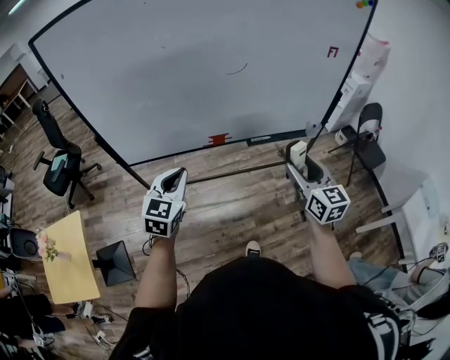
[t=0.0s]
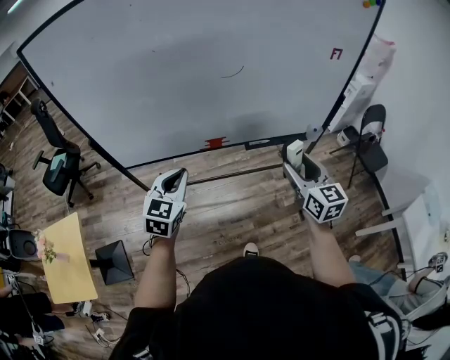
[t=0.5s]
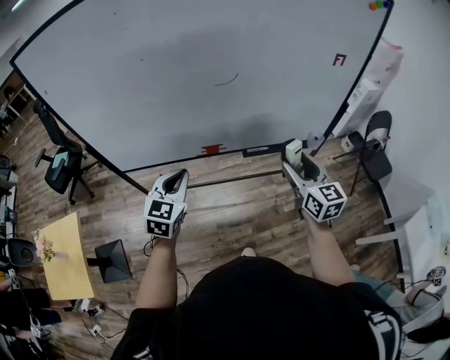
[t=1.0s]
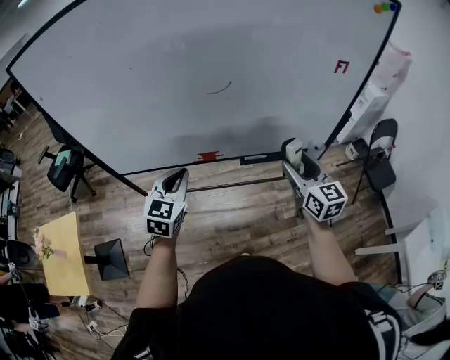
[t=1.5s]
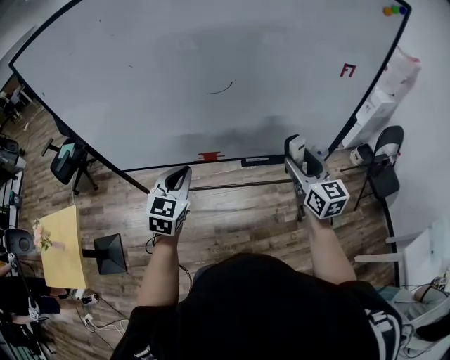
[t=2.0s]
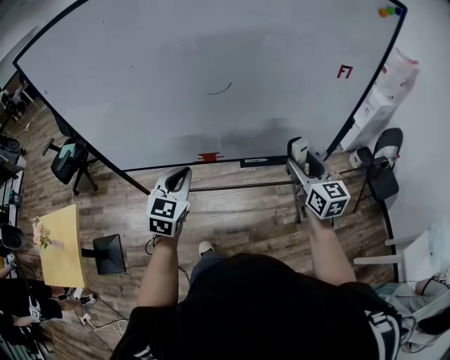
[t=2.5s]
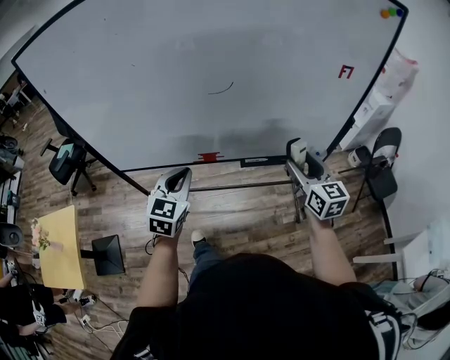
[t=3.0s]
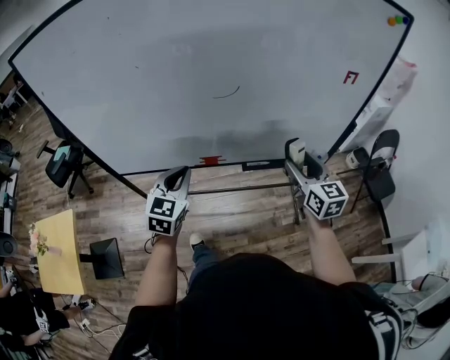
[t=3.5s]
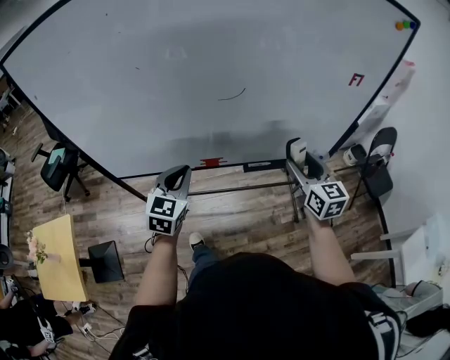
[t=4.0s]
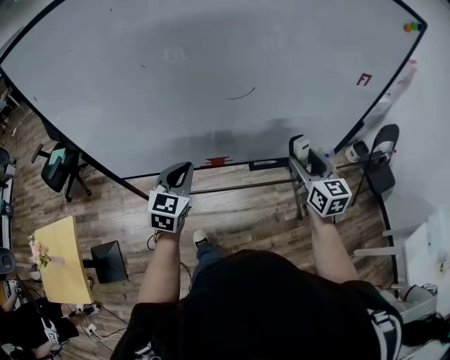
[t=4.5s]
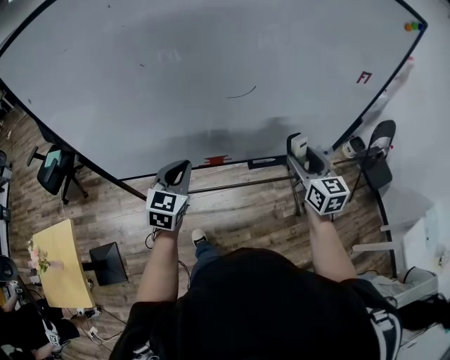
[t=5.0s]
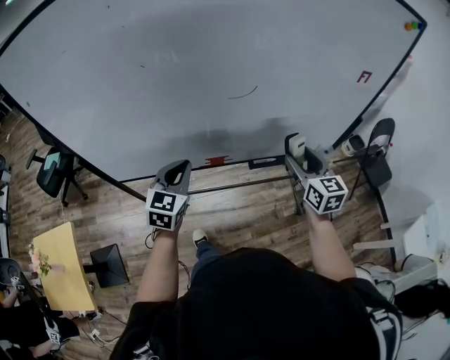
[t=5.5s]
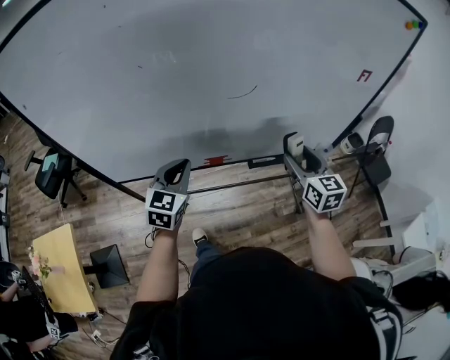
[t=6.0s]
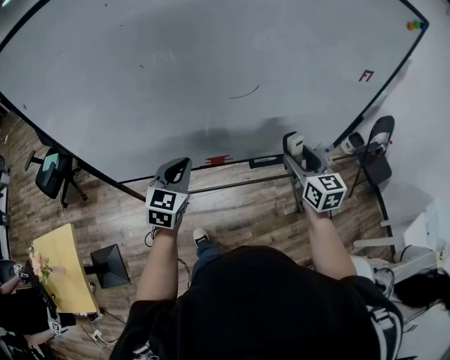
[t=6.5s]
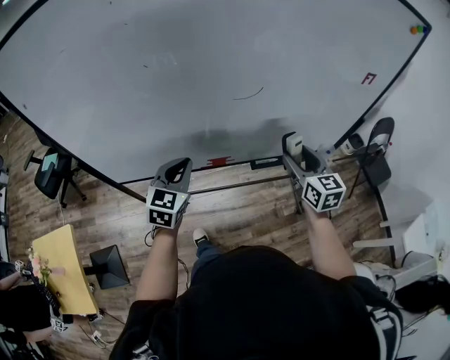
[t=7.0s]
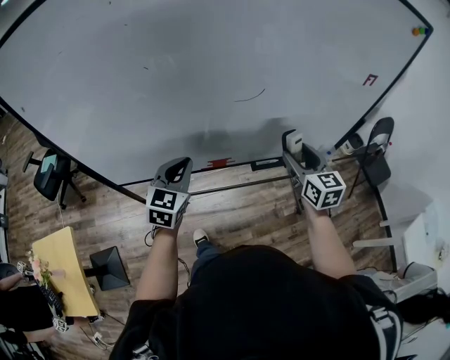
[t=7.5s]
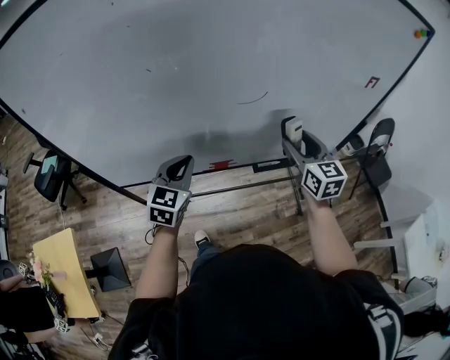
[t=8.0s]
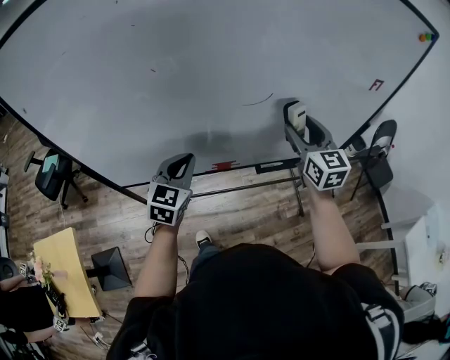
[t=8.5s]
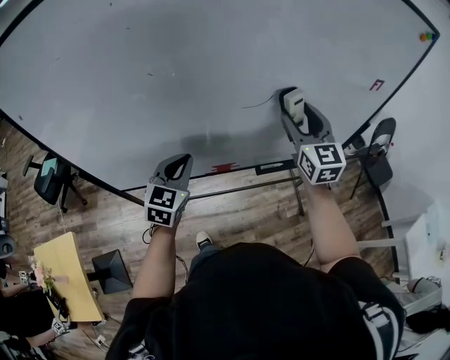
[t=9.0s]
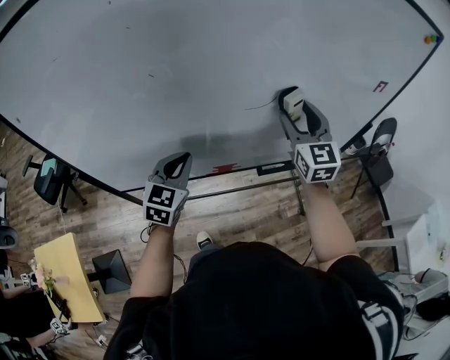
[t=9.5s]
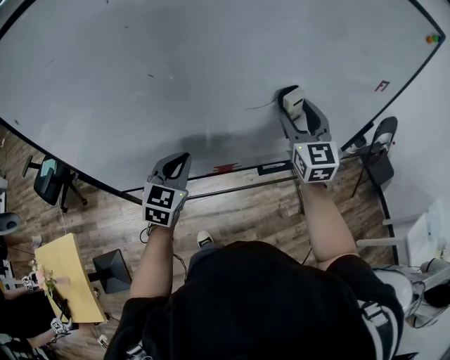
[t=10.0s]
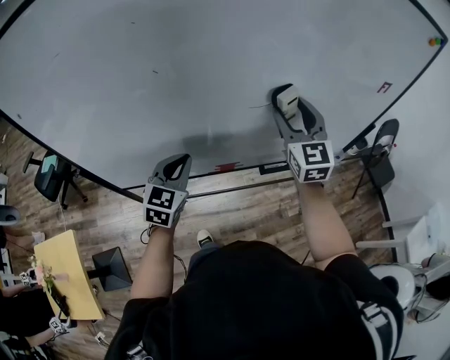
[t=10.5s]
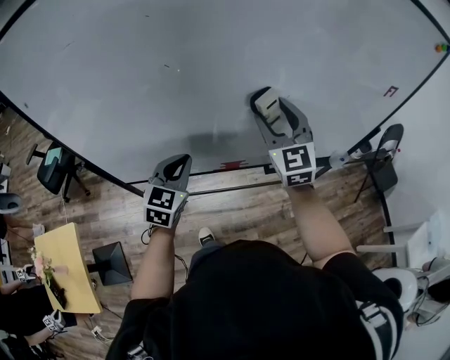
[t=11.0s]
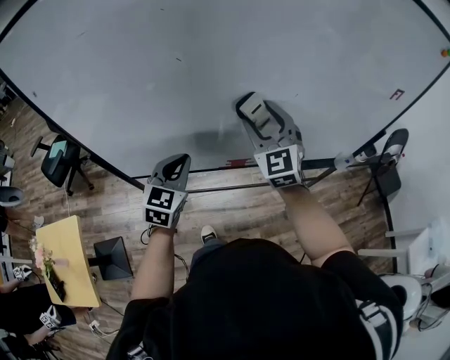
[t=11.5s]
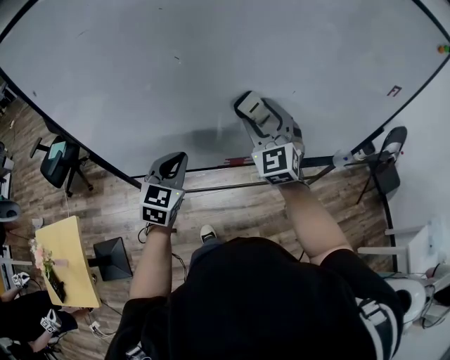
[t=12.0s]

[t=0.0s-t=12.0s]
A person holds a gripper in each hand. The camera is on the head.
t=0.0s to t=2.0s: The grippers both shift forward and to the right by roughly 20 cm.
t=2.0s to t=4.0s: The left gripper changes place by some 5 cm.
t=4.0s to t=6.0s: The left gripper ends up about 5 cm from where it was. Meanwhile the right gripper changes place by roughly 5 cm.
t=6.0s to t=8.0s: The right gripper goes about 5 cm forward.
t=8.0s to t=10.0s: The right gripper is displaced upward, forward and to the left by approximately 10 cm, and changes its angle by some 20 degrees.
t=10.0s to t=12.0s: The right gripper moves to the left, roughly 15 cm, and turns by roughly 20 degrees. The left gripper moves some 5 cm.

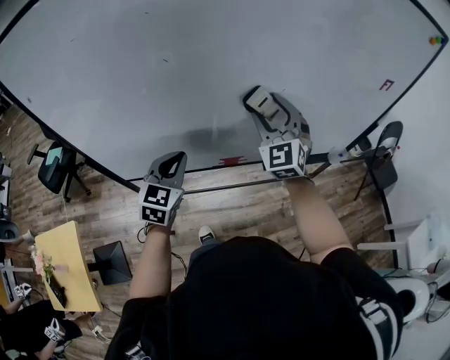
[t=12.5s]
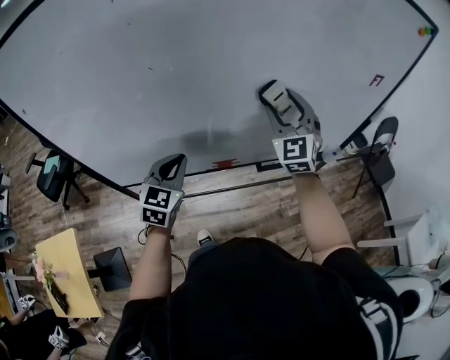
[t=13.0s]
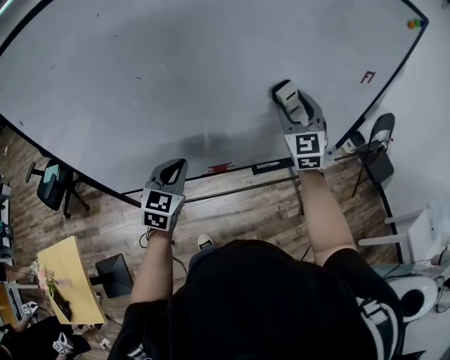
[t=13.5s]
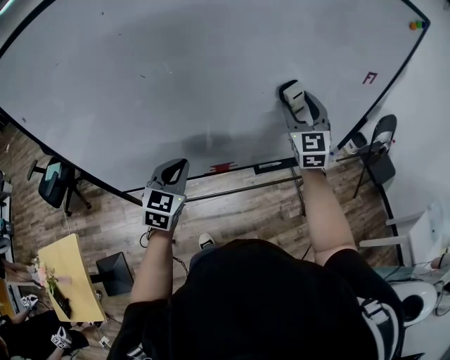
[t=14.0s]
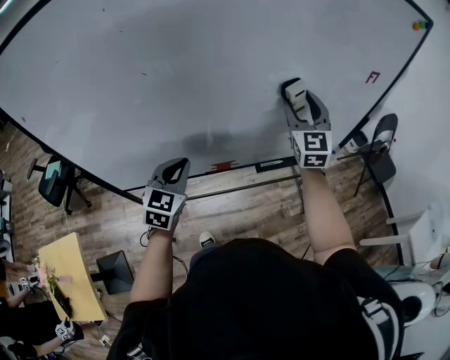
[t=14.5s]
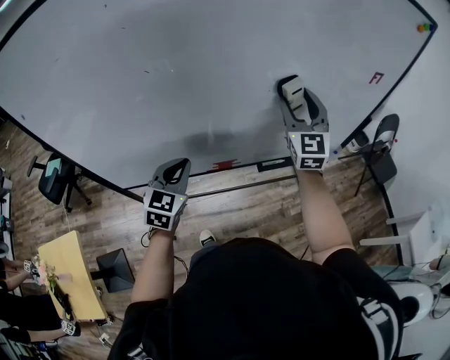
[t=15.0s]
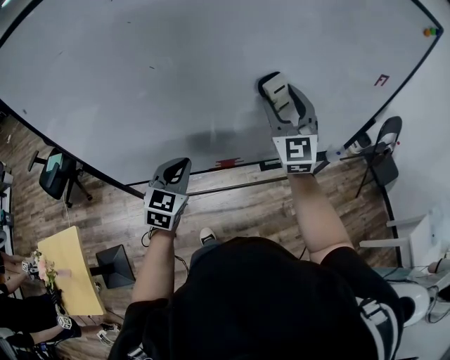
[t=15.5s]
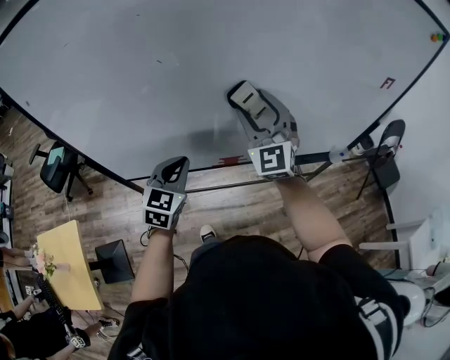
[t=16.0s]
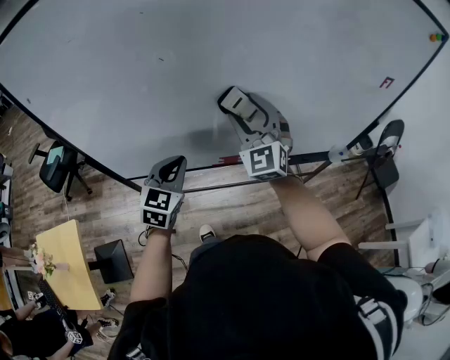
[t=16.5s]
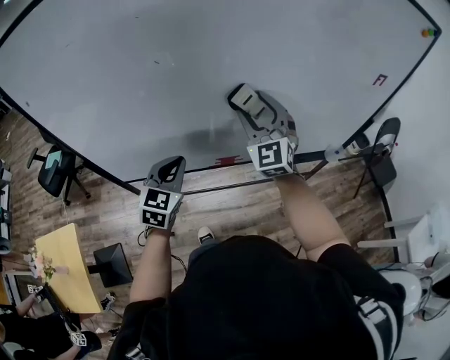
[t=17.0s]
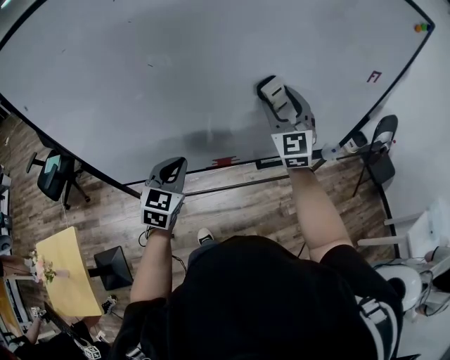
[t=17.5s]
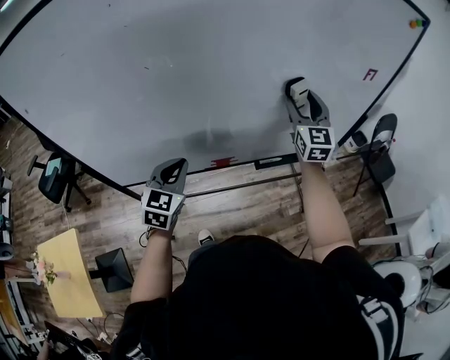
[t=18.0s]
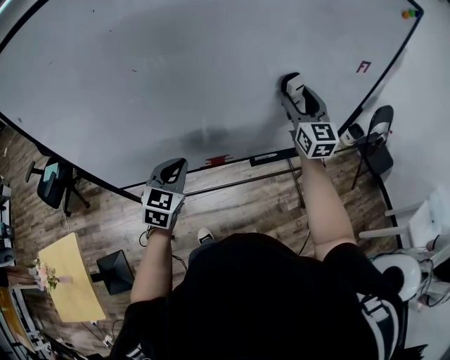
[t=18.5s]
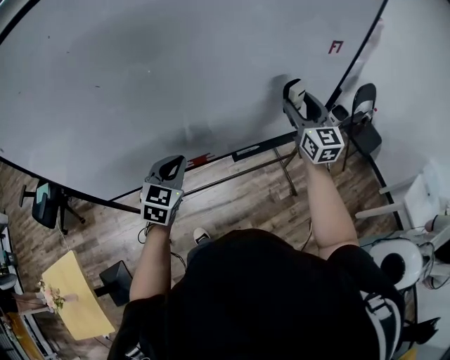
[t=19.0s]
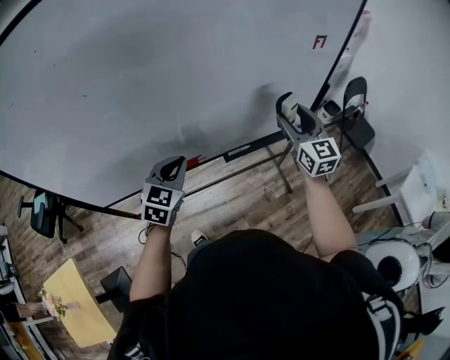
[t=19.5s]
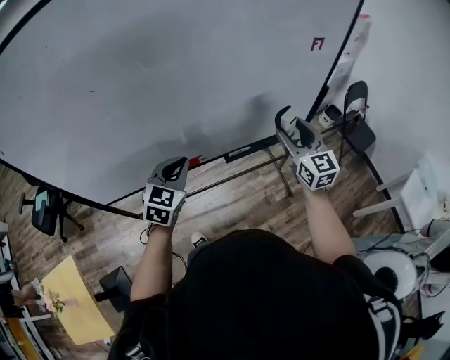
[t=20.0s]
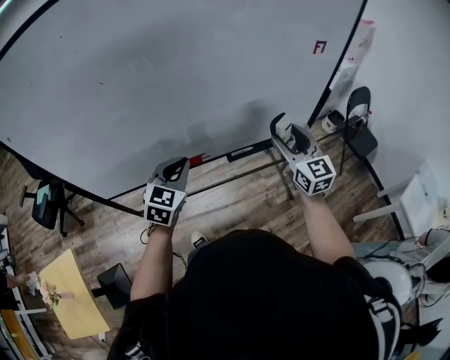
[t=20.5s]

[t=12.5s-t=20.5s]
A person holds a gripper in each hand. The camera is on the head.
t=12.5s to t=14.5s: The right gripper heads to the right, covering some 15 cm, and swivels some 20 degrees.
t=14.5s to t=16.5s: The right gripper heads to the left, covering some 20 cm, and swivels roughly 20 degrees.
t=16.5s to t=18.5s: The right gripper moves to the right, some 20 cm, and swivels some 30 degrees. Meanwhile the left gripper is displaced to the right by approximately 5 cm.
t=18.5s to t=20.5s: The left gripper shifts approximately 10 cm to the right; the right gripper travels backward, to the right and downward by approximately 20 cm.

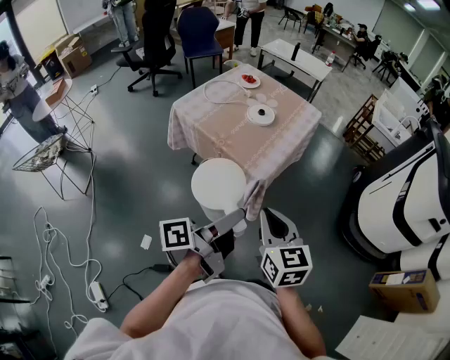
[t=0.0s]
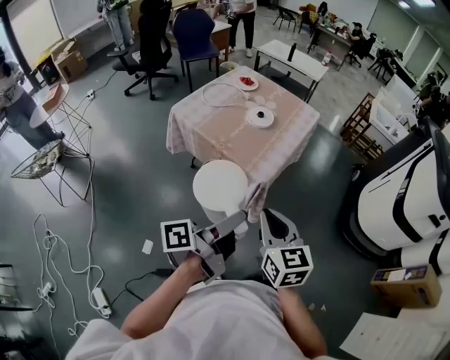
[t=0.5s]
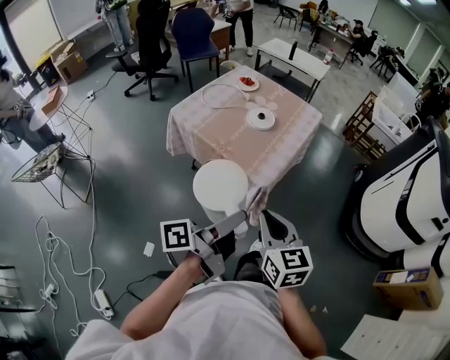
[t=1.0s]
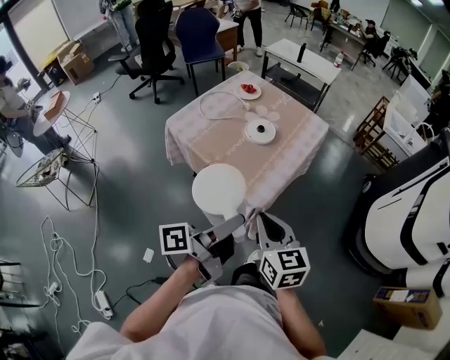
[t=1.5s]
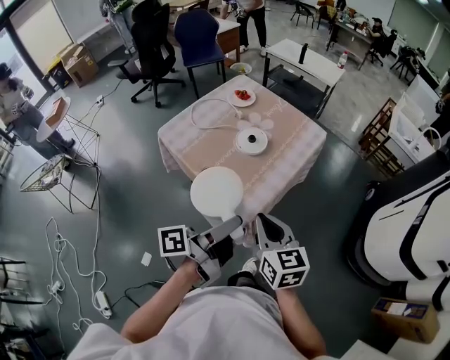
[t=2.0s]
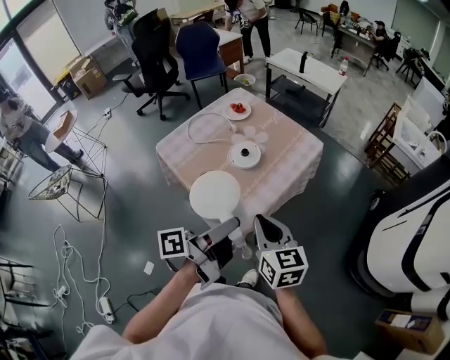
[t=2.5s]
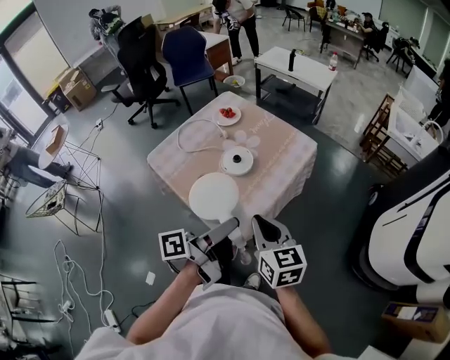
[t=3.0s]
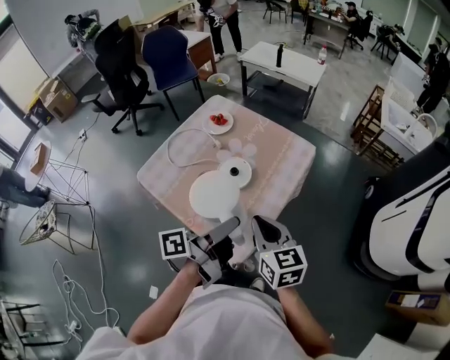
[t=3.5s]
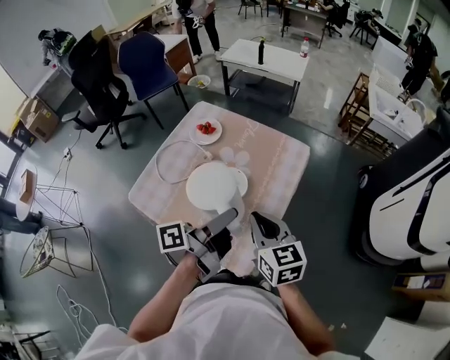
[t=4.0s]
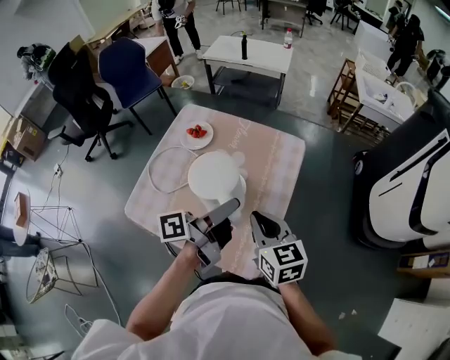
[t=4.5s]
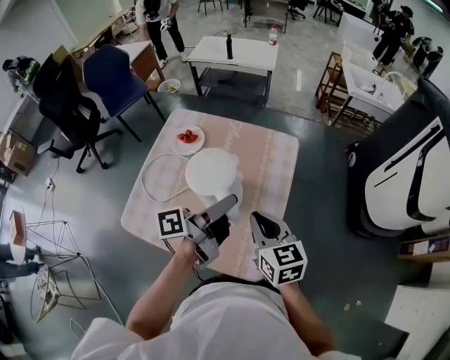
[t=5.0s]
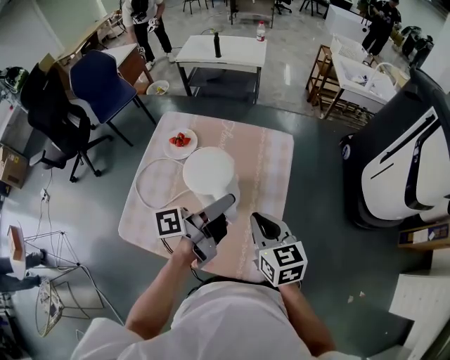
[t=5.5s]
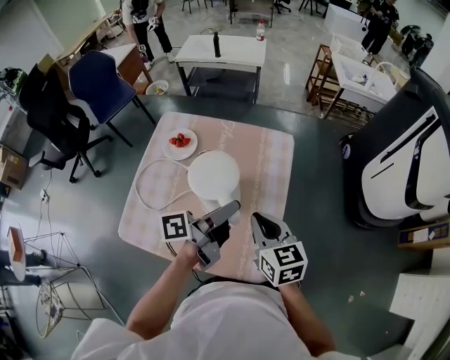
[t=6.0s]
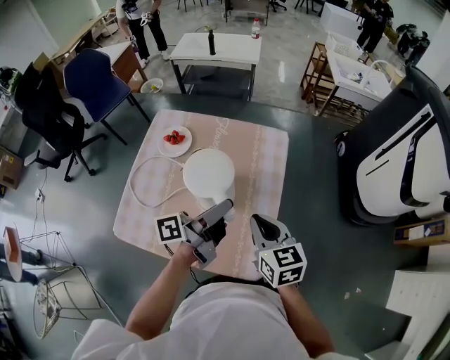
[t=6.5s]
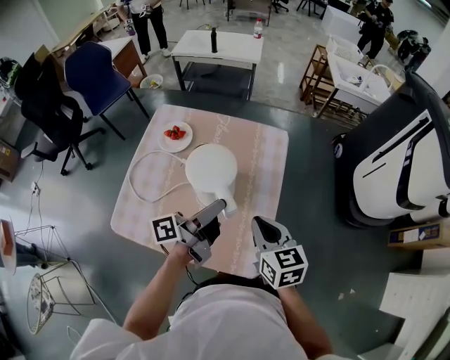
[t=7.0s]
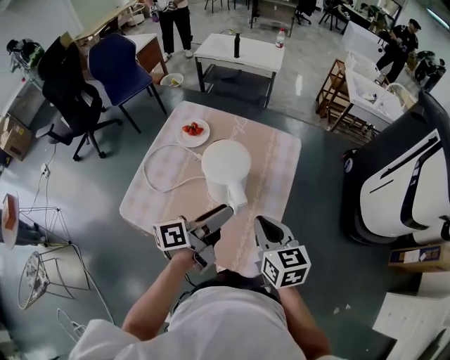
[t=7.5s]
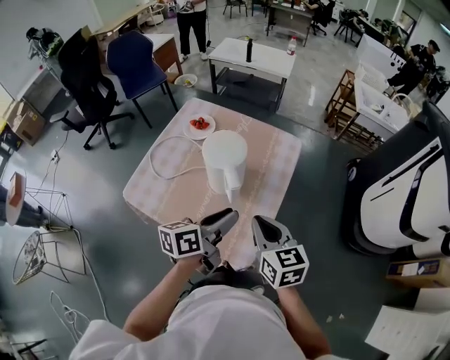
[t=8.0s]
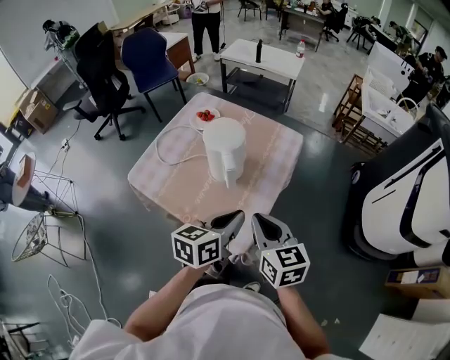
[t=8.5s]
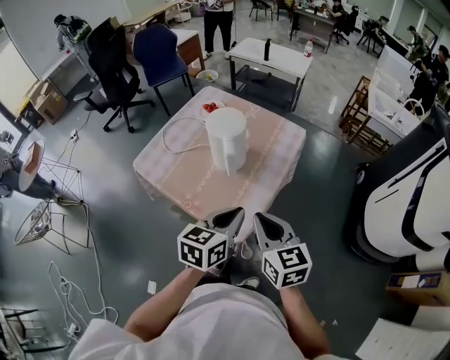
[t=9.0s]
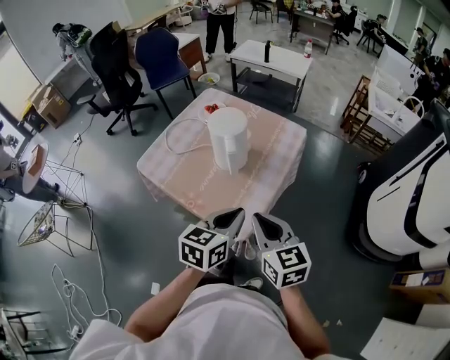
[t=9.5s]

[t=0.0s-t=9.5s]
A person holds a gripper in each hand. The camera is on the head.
t=0.0s to t=2.0s: The right gripper moves some 20 cm.
t=2.0s to t=4.0s: The right gripper changes place by roughly 20 cm.
t=4.0s to t=5.5s: The right gripper shifts by some 5 cm.
t=7.5s to t=9.5s: The right gripper ends up about 15 cm from where it was.
